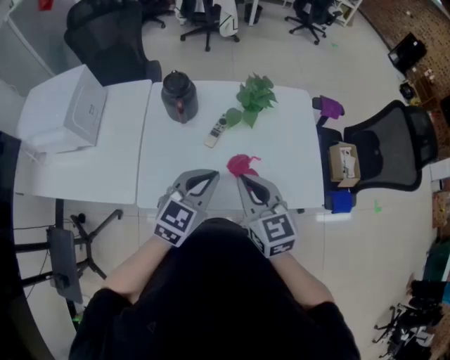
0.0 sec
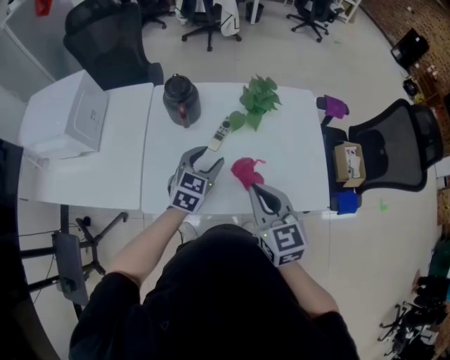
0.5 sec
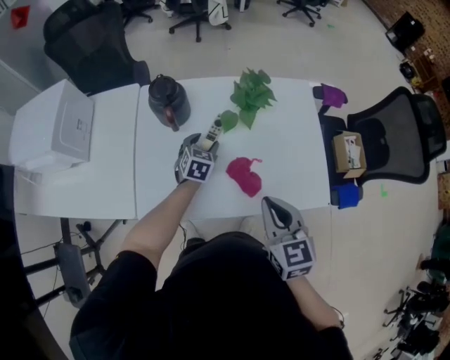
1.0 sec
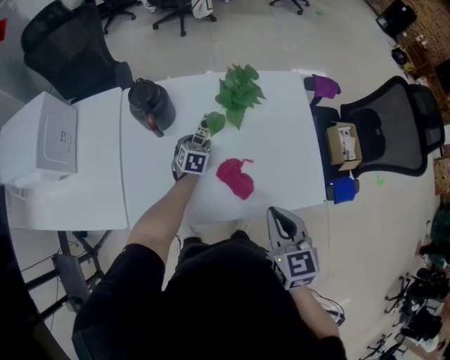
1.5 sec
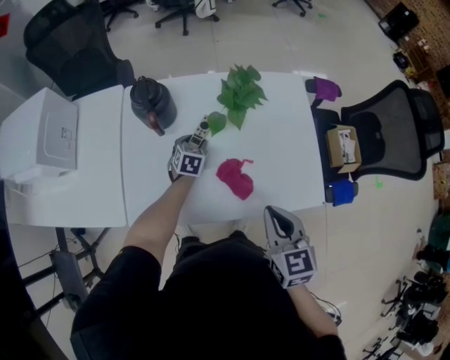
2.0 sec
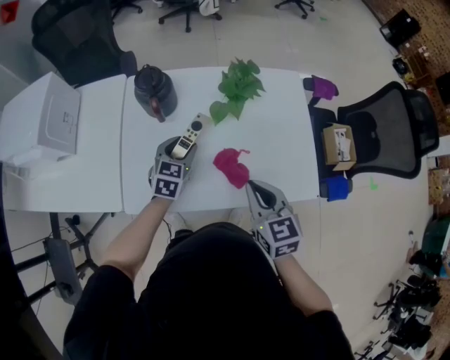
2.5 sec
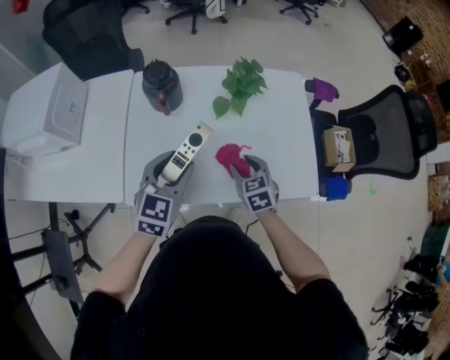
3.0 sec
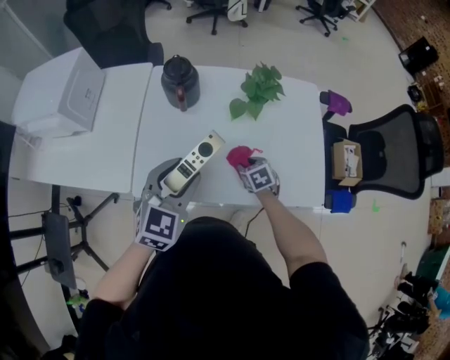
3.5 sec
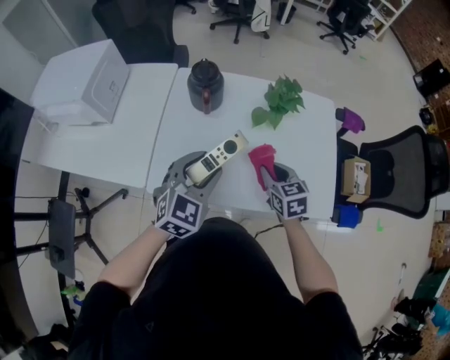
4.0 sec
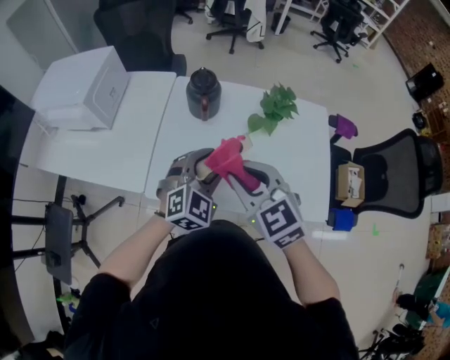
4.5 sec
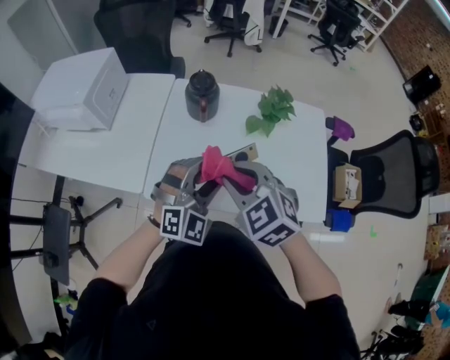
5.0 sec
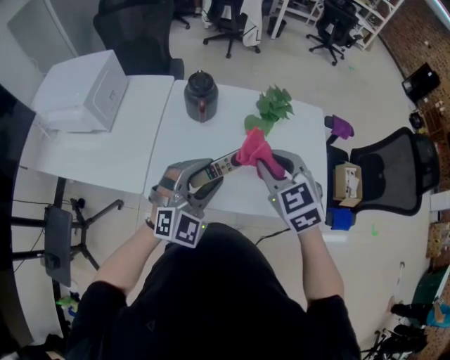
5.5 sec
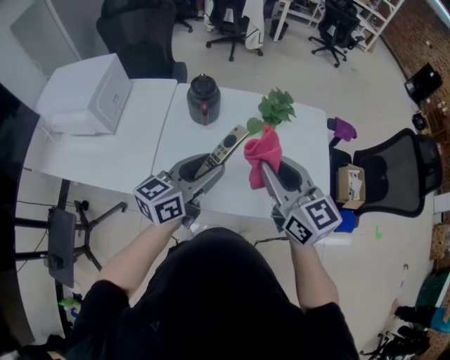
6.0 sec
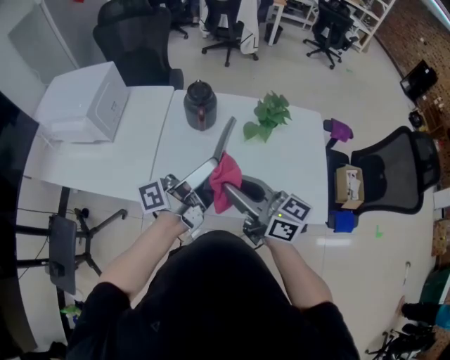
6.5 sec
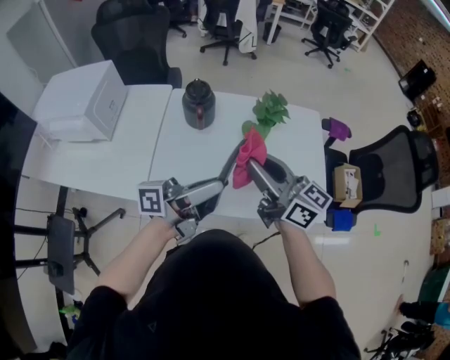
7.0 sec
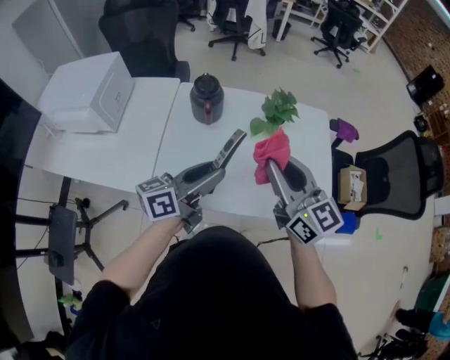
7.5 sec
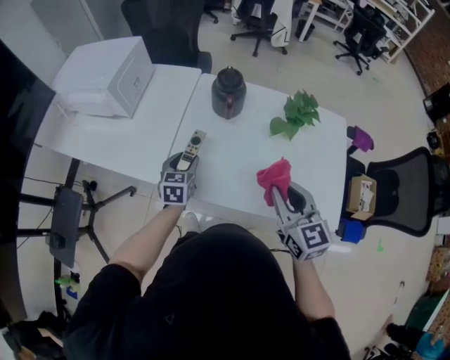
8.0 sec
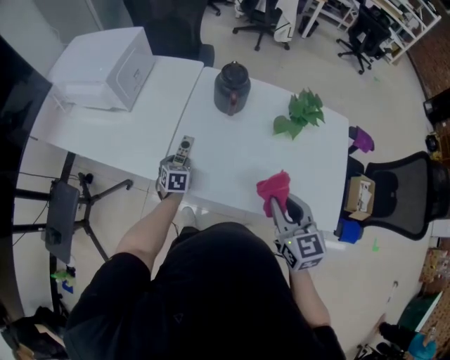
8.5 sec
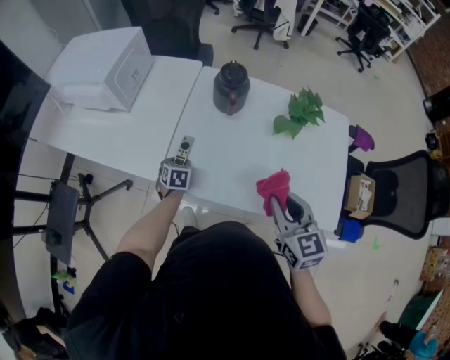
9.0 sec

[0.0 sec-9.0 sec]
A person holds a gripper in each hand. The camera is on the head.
0.0 sec to 2.0 sec: The right gripper goes approximately 10 cm to the right and downward. The left gripper shifts roughly 35 cm downward and forward, changes its angle by roughly 30 degrees, and opens its fingers.
2.0 sec to 4.5 sec: The left gripper shifts some 30 cm upward and backward, and swivels about 40 degrees. Meanwhile the right gripper shifts some 15 cm to the left, moves approximately 25 cm downward and comes back, rotates about 40 degrees, and opens, then closes once more.
4.5 sec to 7.0 sec: The right gripper swings left and right, roughly 10 cm each way, with 2 reversals, and tilts its fingers some 40 degrees upward. Meanwhile the left gripper heads upward and backward, covering some 10 cm, and points its fingers some 50 degrees further upward.
7.0 sec to 9.0 sec: The left gripper goes approximately 35 cm downward, and tips its fingers downward by approximately 80 degrees; the right gripper moves downward, roughly 10 cm, and angles its fingers downward, by approximately 30 degrees.

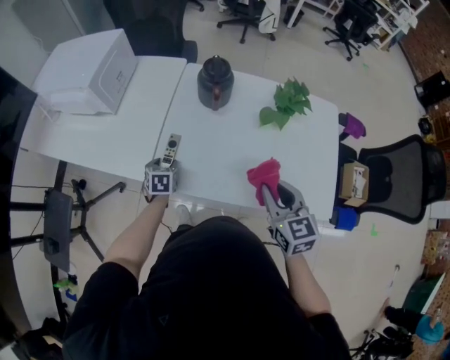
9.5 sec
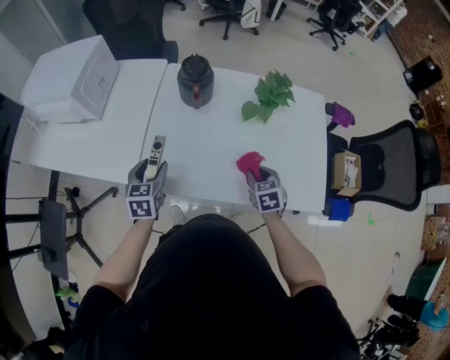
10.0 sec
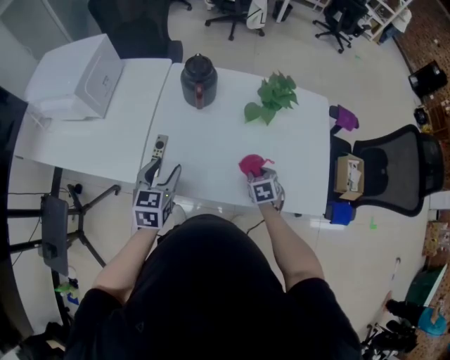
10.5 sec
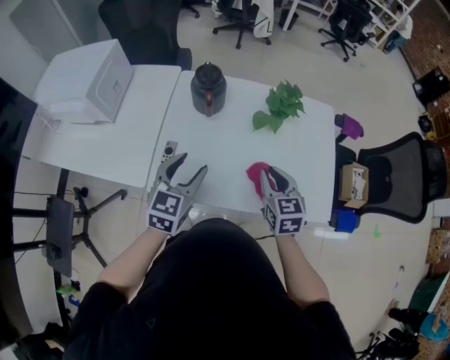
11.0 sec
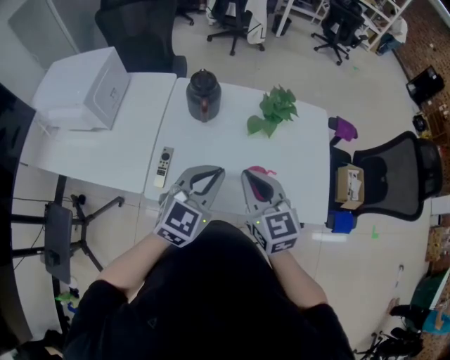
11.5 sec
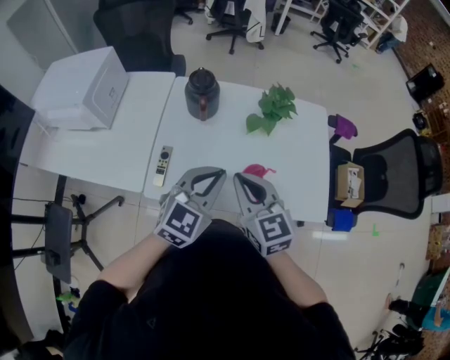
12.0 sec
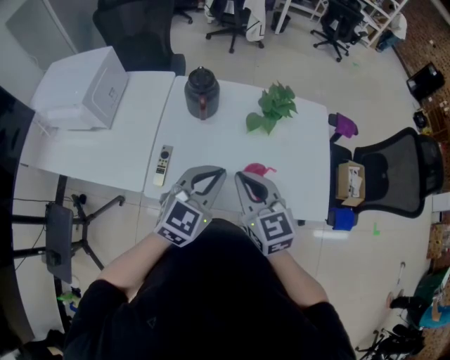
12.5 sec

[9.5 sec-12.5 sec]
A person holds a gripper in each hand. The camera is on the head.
9.5 sec to 11.0 sec: The right gripper goes approximately 5 cm forward, and moves some 20 cm downward and comes back. Meanwhile the left gripper is displaced upward and to the right by roughly 30 cm, and points its fingers some 30 degrees further upward.
11.0 sec to 12.5 sec: The left gripper shifts roughly 10 cm to the right and upward, and closes its fingers. Meanwhile the right gripper goes about 10 cm upward and to the left.

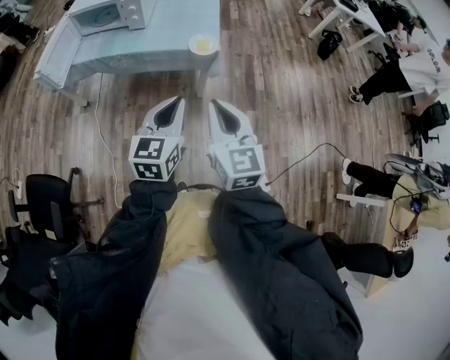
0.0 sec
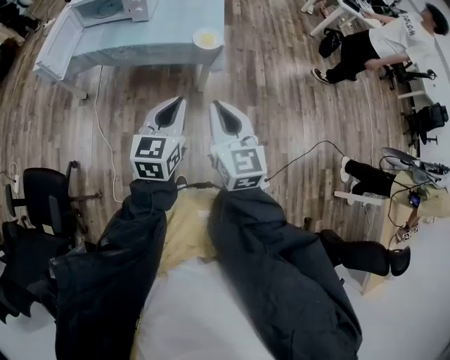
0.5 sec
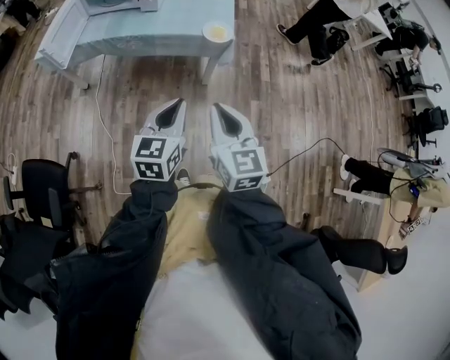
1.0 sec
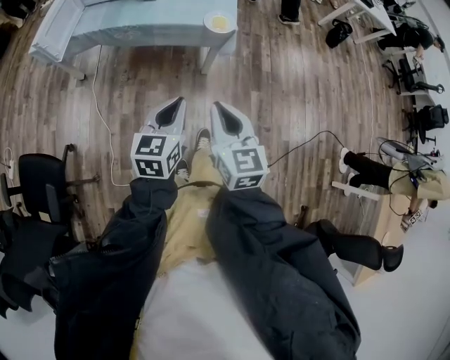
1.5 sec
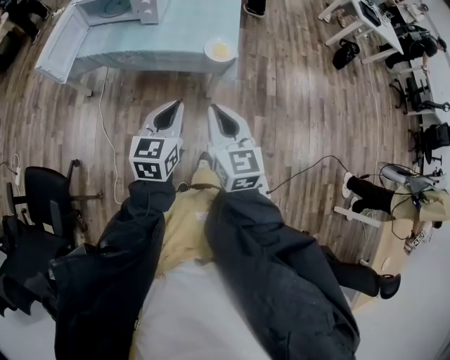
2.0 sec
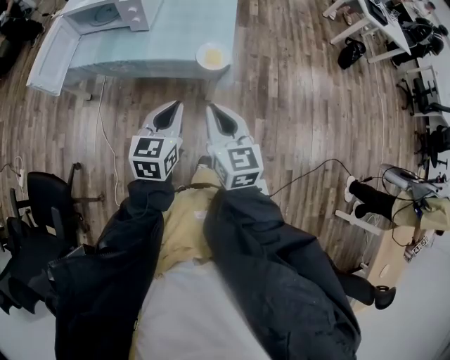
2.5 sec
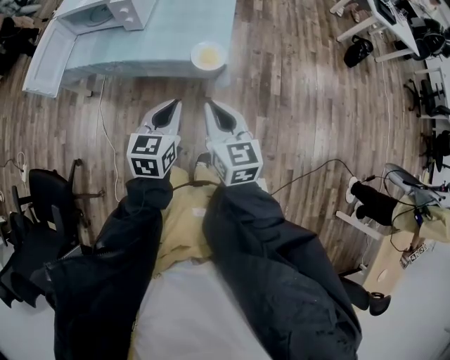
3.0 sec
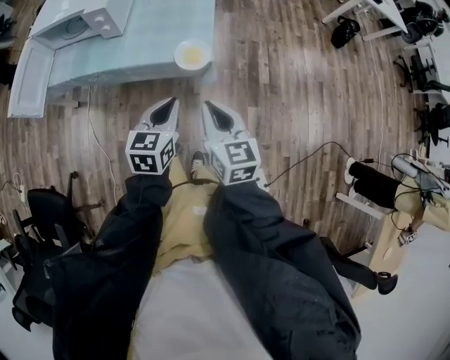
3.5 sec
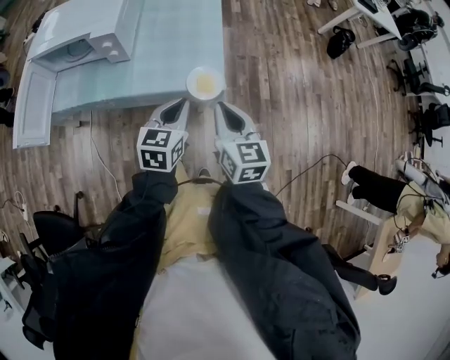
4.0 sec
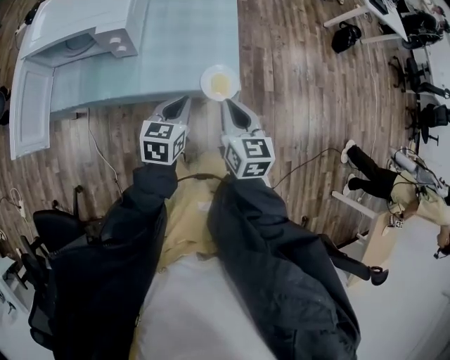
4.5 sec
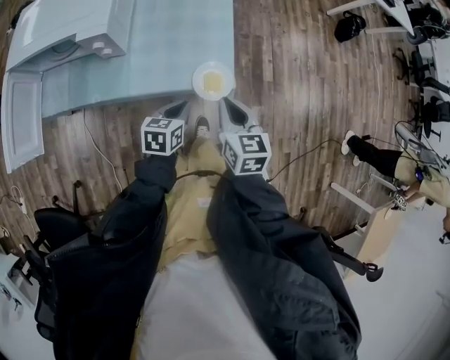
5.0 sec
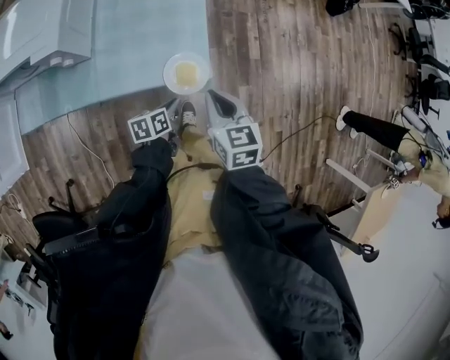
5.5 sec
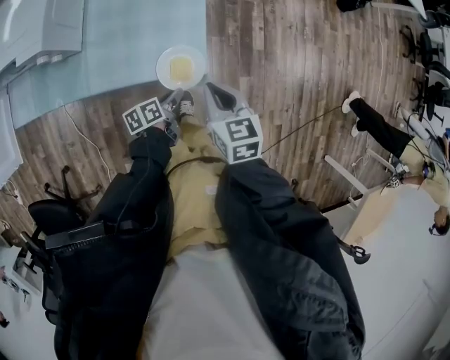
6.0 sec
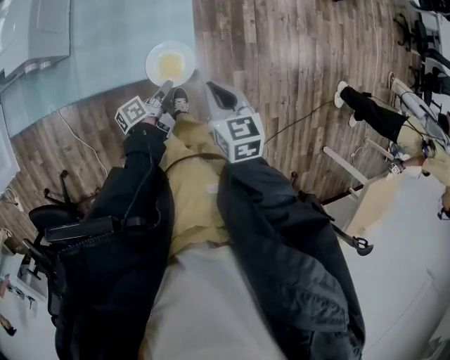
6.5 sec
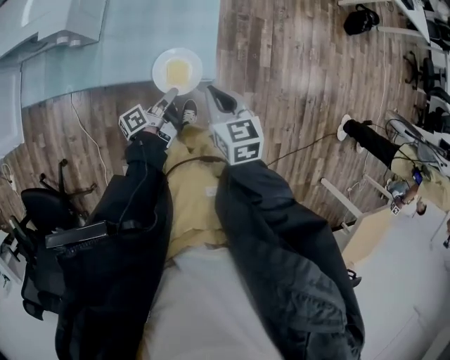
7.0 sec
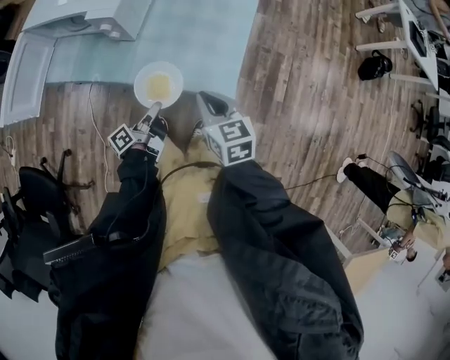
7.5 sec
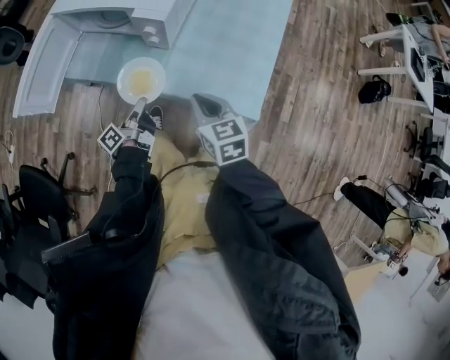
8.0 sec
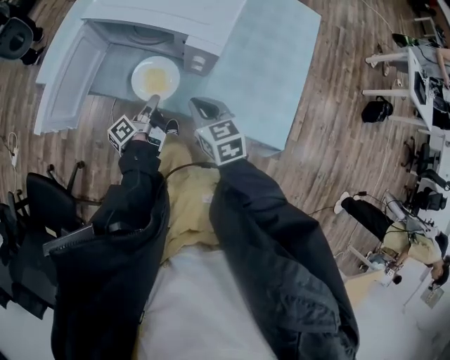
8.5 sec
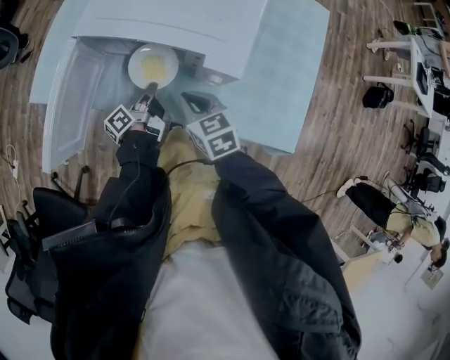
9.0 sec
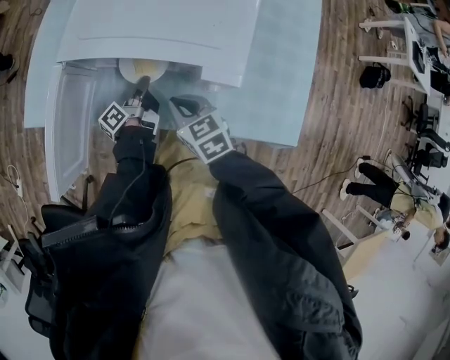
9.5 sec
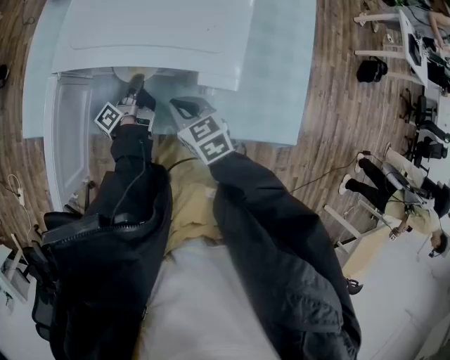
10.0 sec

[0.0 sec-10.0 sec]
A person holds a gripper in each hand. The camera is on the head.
0.0 sec to 2.0 sec: The grippers both shift forward and downward by some 10 cm.
2.0 sec to 4.0 sec: Both grippers travel together forward, some 25 cm.
4.0 sec to 6.0 sec: The right gripper travels downward and forward by about 15 cm, and changes its angle by about 20 degrees. Meanwhile the left gripper heads downward, covering roughly 30 cm, twists some 60 degrees counterclockwise, seen from behind, and opens its fingers.
6.0 sec to 8.0 sec: The right gripper changes place by about 25 cm, and turns by some 30 degrees; the left gripper shifts by some 35 cm, tips its fingers upward by some 30 degrees, and closes its fingers.
8.0 sec to 10.0 sec: The left gripper travels forward by approximately 30 cm. Meanwhile the right gripper moves forward and to the left, approximately 30 cm.

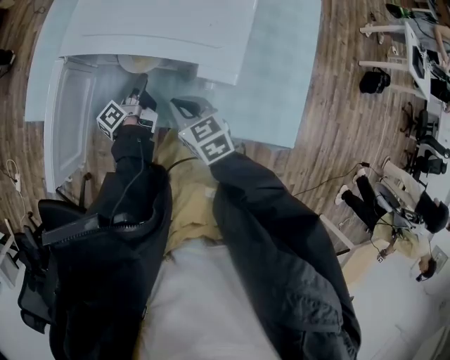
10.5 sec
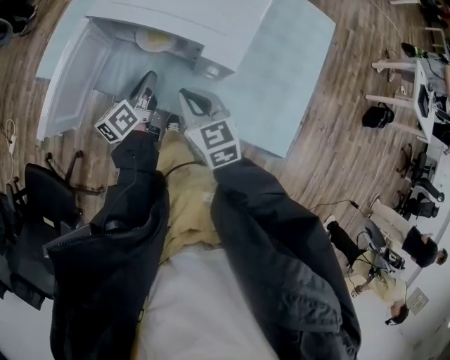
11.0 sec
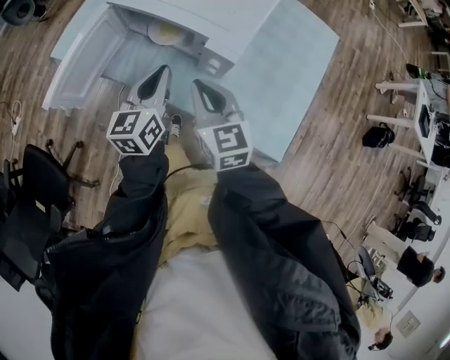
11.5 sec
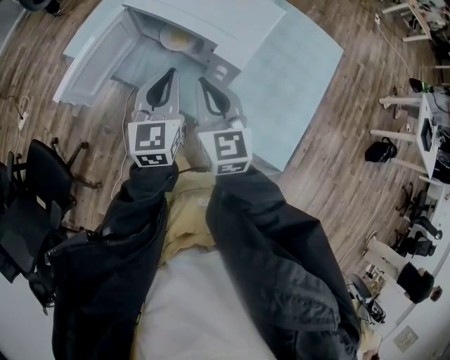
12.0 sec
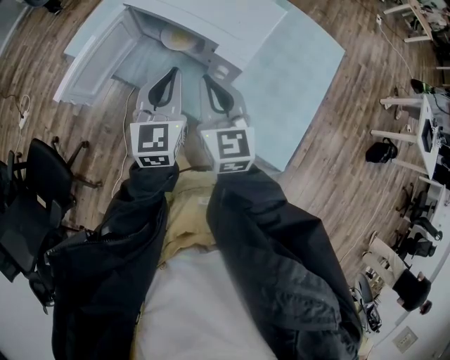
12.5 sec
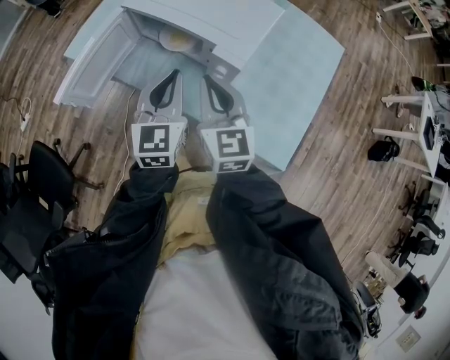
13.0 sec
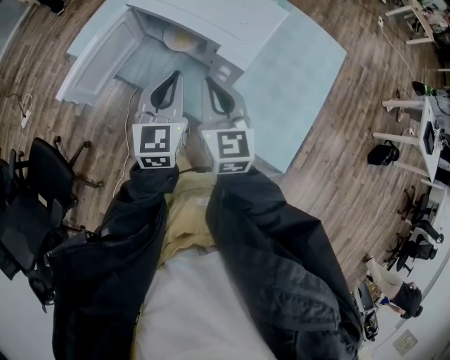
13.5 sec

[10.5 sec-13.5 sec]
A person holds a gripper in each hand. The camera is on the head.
10.5 sec to 12.0 sec: The left gripper travels upward and backward by roughly 30 cm, rolls clockwise, seen from behind, by some 80 degrees, and closes. Meanwhile the right gripper shifts approximately 20 cm upward, and turns by roughly 30 degrees.
12.0 sec to 13.5 sec: Neither gripper changes place.
